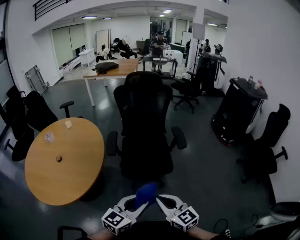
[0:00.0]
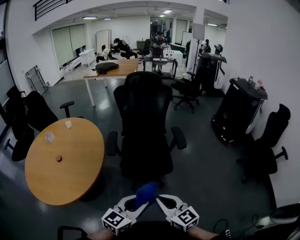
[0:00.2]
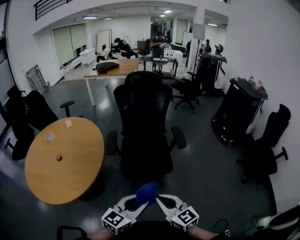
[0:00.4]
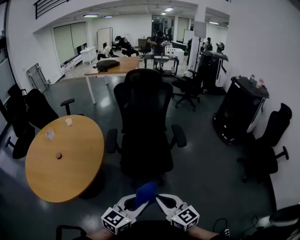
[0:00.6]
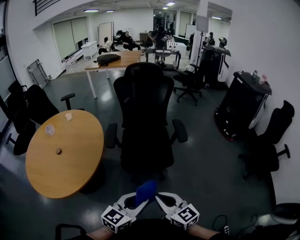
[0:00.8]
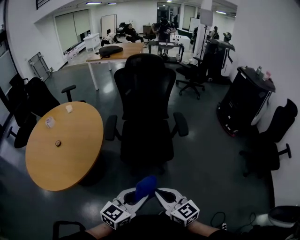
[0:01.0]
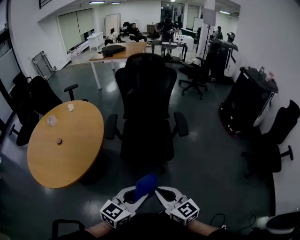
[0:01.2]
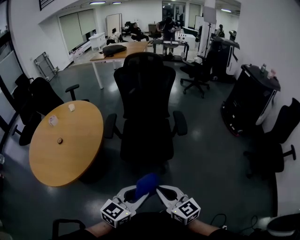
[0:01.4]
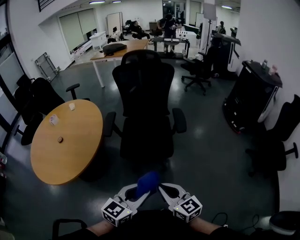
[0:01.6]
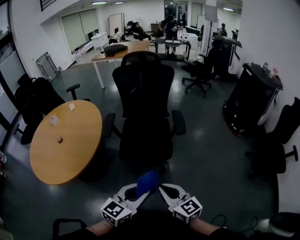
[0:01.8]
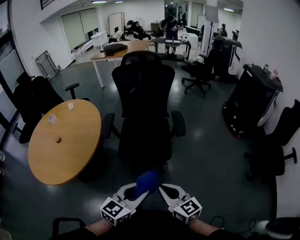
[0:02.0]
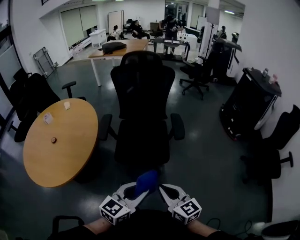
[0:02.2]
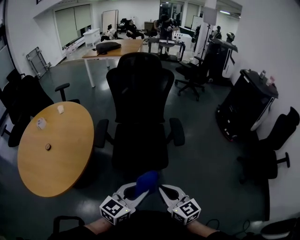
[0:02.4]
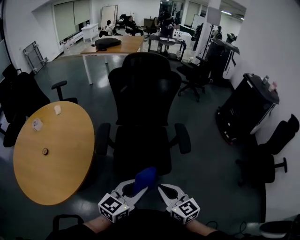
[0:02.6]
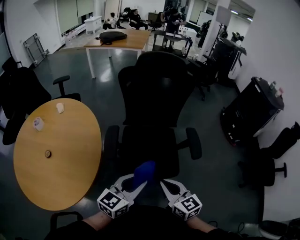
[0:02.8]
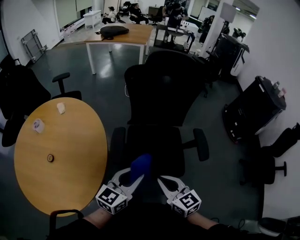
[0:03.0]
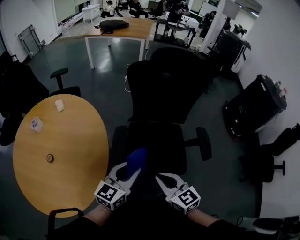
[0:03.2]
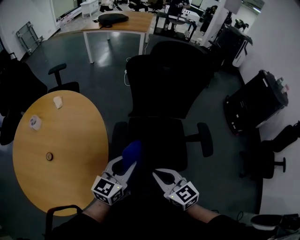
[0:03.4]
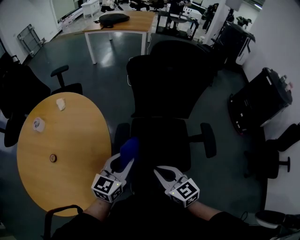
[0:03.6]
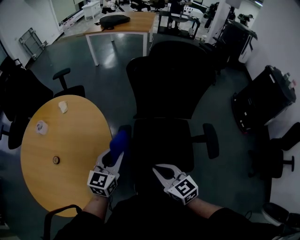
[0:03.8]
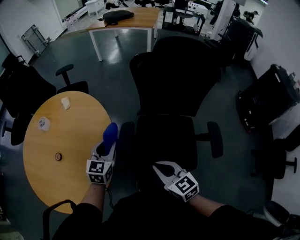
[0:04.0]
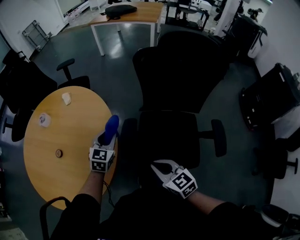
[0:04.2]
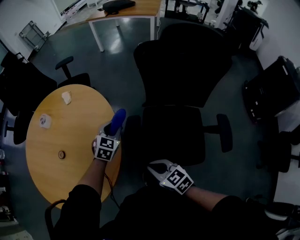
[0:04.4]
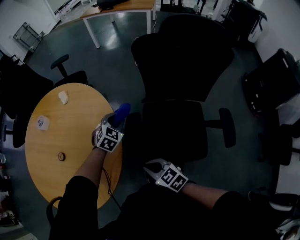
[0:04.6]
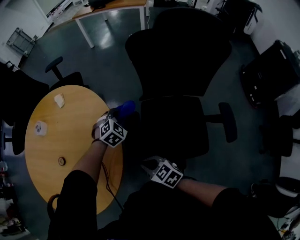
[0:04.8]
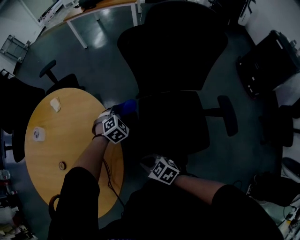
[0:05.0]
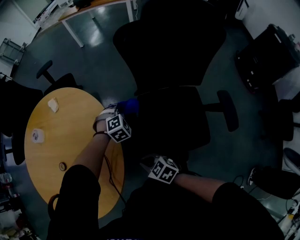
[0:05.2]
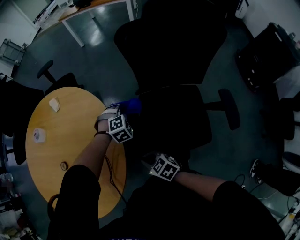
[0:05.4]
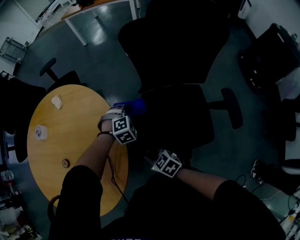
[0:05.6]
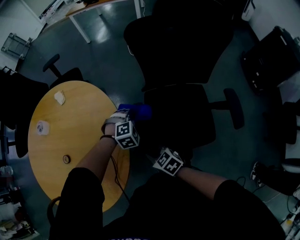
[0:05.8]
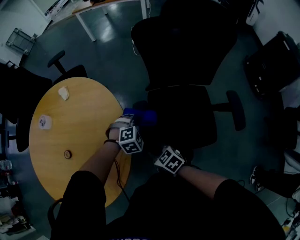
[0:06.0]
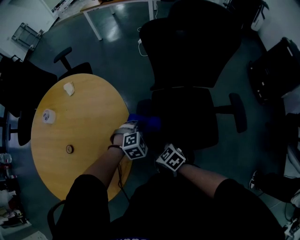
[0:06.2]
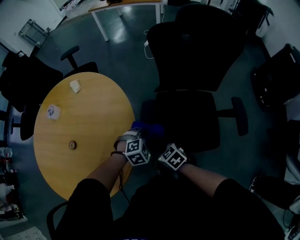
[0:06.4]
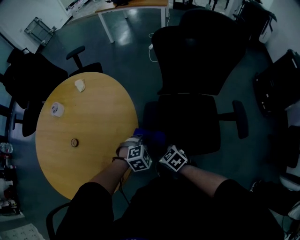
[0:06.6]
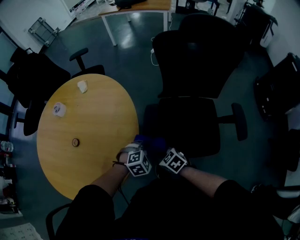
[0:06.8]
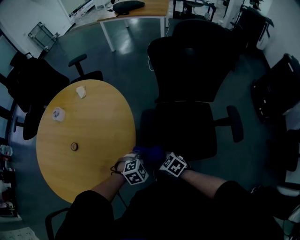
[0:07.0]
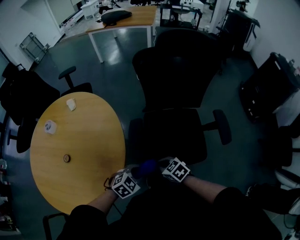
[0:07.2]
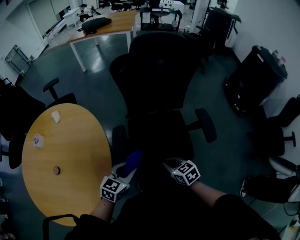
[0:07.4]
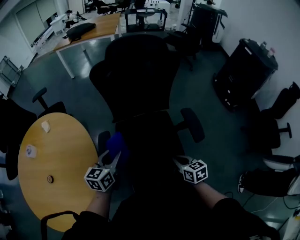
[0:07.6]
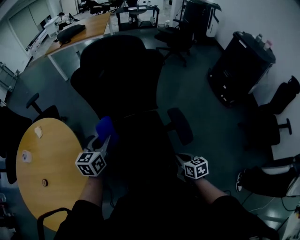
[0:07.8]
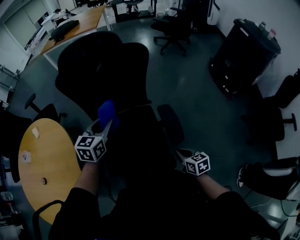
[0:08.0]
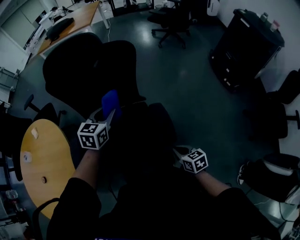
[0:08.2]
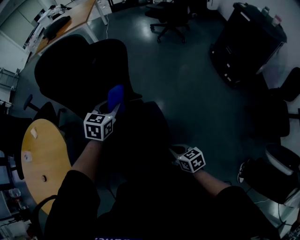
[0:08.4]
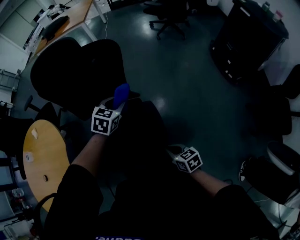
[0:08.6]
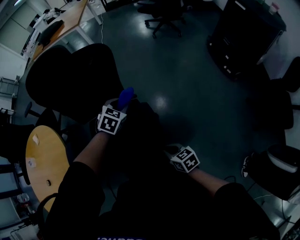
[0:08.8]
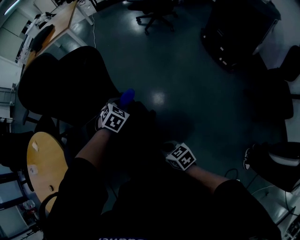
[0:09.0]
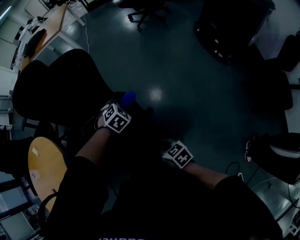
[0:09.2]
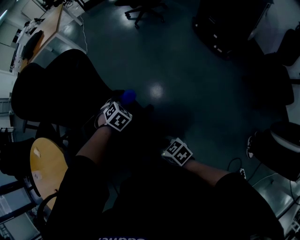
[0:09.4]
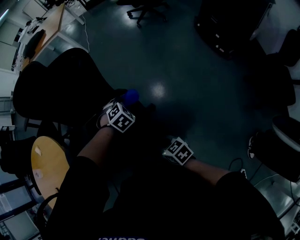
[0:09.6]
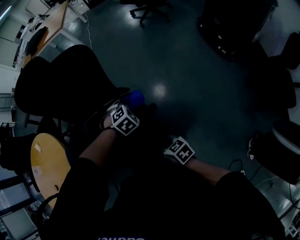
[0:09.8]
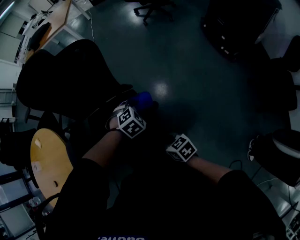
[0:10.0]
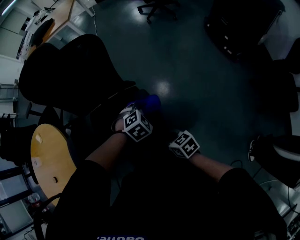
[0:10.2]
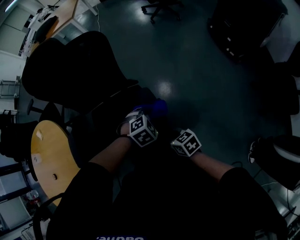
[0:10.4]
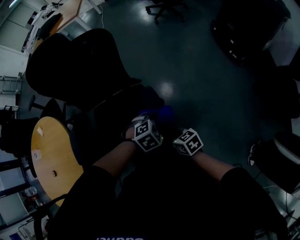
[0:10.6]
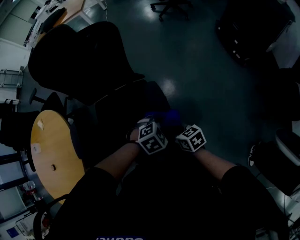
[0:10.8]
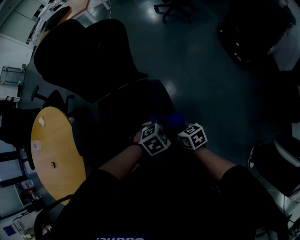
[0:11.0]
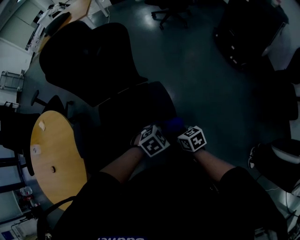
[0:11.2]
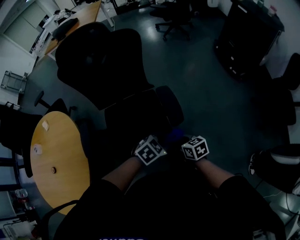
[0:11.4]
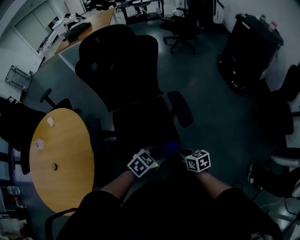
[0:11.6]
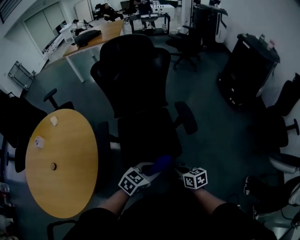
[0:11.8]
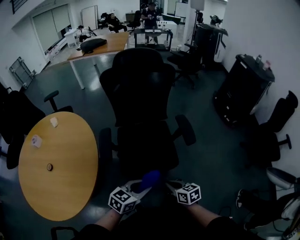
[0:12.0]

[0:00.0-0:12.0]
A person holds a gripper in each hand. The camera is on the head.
0:00.0 to 0:01.6: Both grippers travel together to the right, some 10 cm.
0:01.6 to 0:03.0: The two grippers go some 35 cm forward and to the left.
0:03.0 to 0:04.4: The left gripper moves approximately 35 cm, and rotates approximately 40 degrees. Meanwhile the right gripper moves some 15 cm, and swivels about 30 degrees.
0:04.4 to 0:06.0: The left gripper goes roughly 15 cm downward, backward and to the right, and rotates around the line of its fingers by approximately 50 degrees, clockwise from behind. Meanwhile the right gripper moves downward and to the left, approximately 15 cm.
0:06.0 to 0:07.6: The left gripper heads upward, covering about 15 cm, and rolls counterclockwise, seen from behind, by some 70 degrees; the right gripper ends up about 35 cm from where it was, and rotates roughly 40 degrees.
0:07.6 to 0:09.0: The left gripper shifts about 50 cm to the right and forward, and tips its fingers downward by roughly 40 degrees. Meanwhile the right gripper goes about 20 cm to the right.
0:09.0 to 0:10.4: The left gripper moves backward, about 15 cm, and turns by roughly 20 degrees.
0:10.4 to 0:12.0: The right gripper ends up about 30 cm from where it was. The left gripper changes place by approximately 50 cm, and points its fingers roughly 40 degrees further upward.

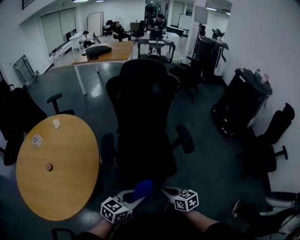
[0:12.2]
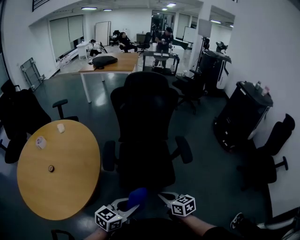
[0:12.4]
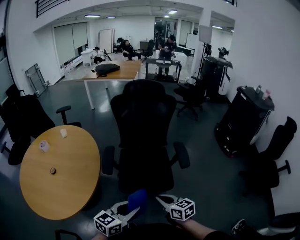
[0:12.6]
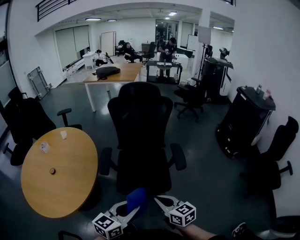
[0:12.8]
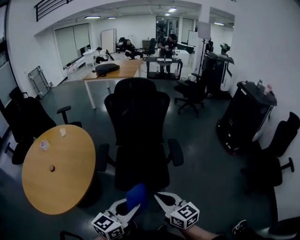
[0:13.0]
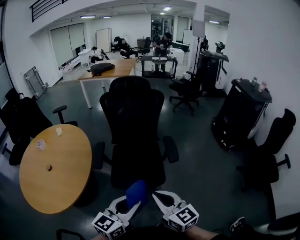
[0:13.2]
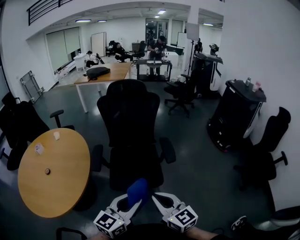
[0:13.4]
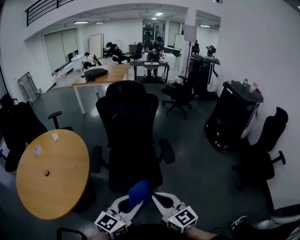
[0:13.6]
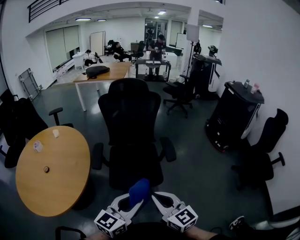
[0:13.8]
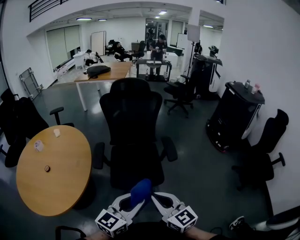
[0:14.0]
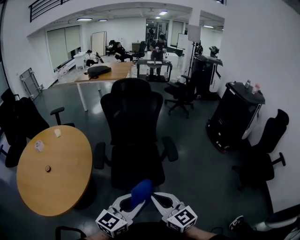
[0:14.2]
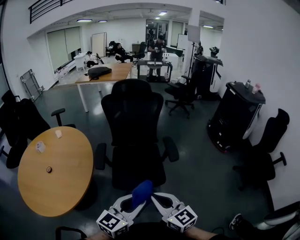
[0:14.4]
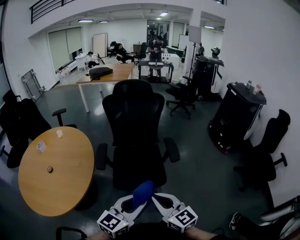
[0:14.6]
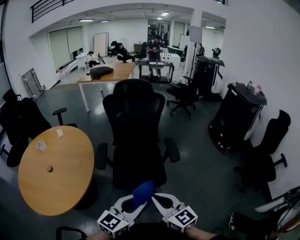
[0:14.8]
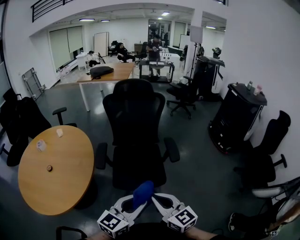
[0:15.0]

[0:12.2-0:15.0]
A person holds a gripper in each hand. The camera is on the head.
0:12.2 to 0:13.6: The left gripper shifts some 20 cm upward and to the right, and turns by some 20 degrees. The right gripper moves upward, approximately 20 cm, and turns by approximately 40 degrees.
0:13.6 to 0:15.0: The grippers make only small movements.

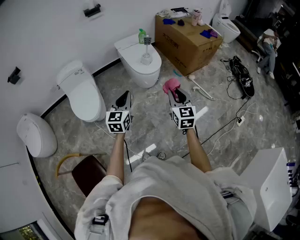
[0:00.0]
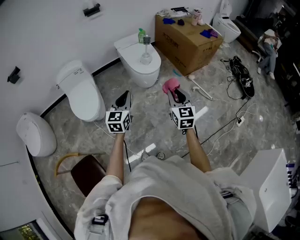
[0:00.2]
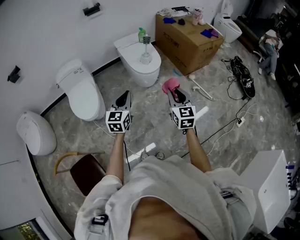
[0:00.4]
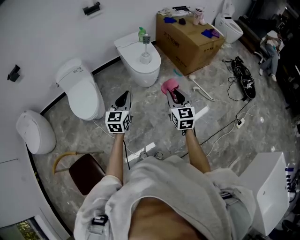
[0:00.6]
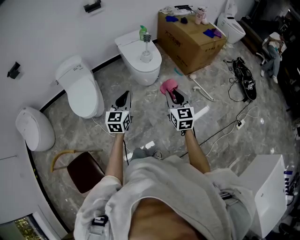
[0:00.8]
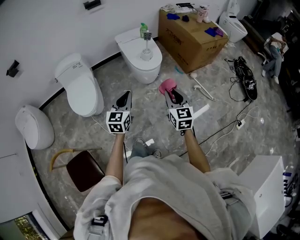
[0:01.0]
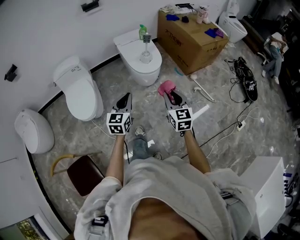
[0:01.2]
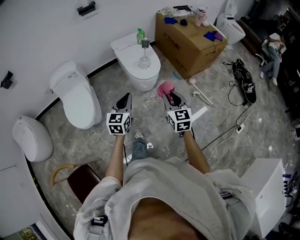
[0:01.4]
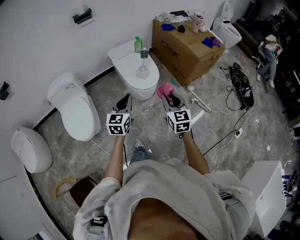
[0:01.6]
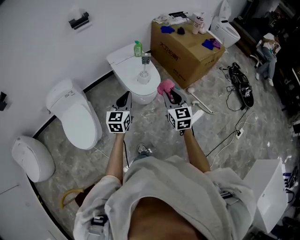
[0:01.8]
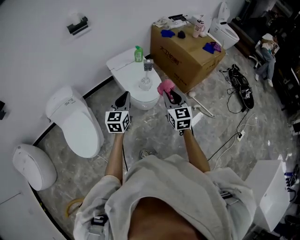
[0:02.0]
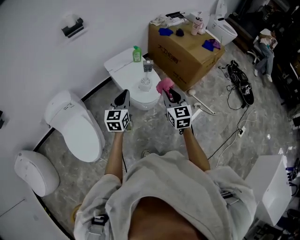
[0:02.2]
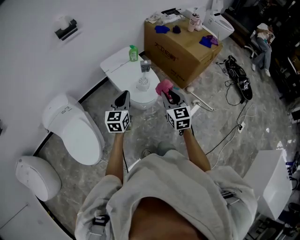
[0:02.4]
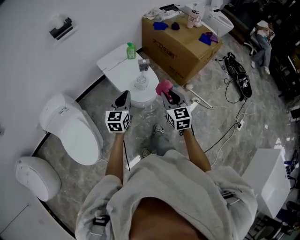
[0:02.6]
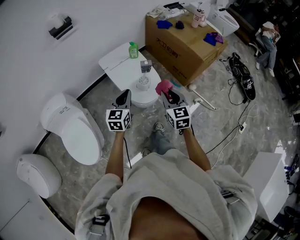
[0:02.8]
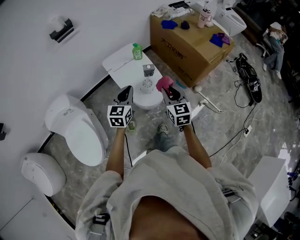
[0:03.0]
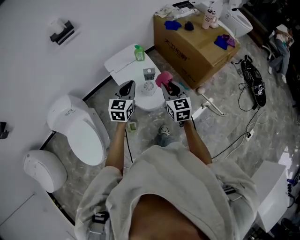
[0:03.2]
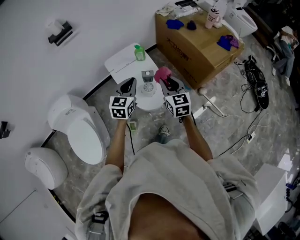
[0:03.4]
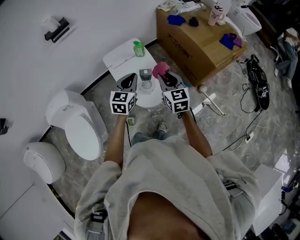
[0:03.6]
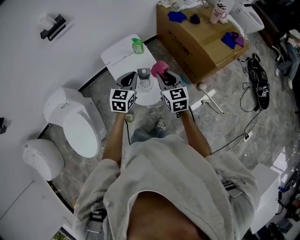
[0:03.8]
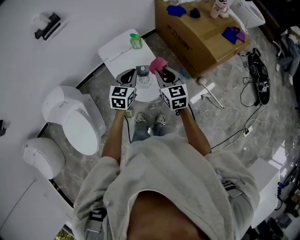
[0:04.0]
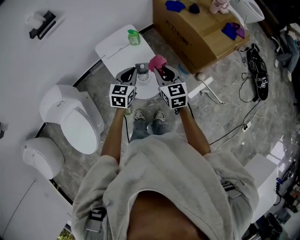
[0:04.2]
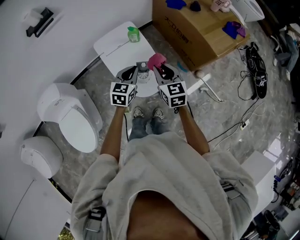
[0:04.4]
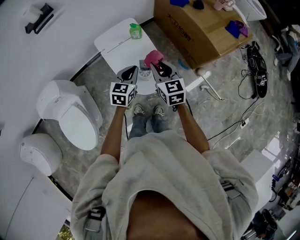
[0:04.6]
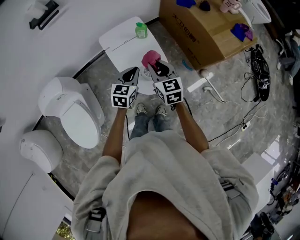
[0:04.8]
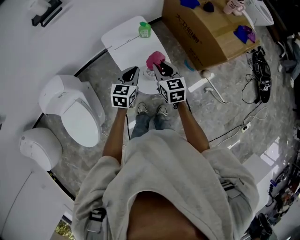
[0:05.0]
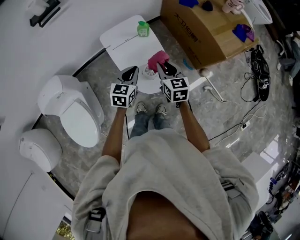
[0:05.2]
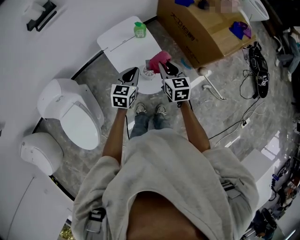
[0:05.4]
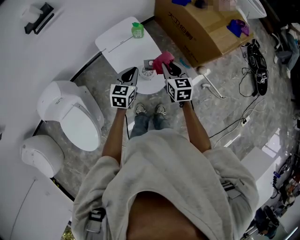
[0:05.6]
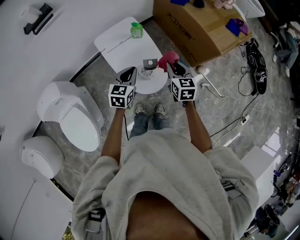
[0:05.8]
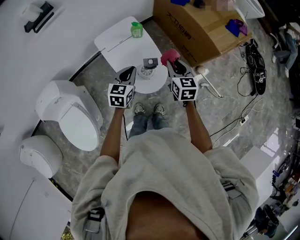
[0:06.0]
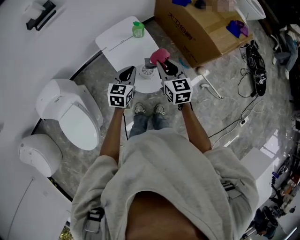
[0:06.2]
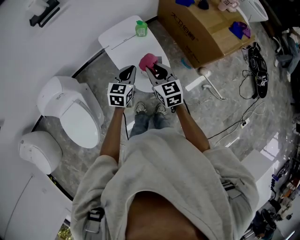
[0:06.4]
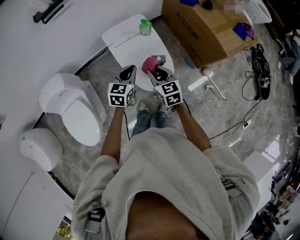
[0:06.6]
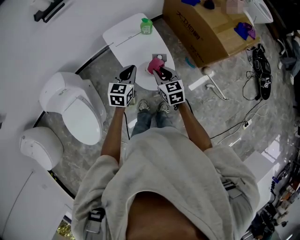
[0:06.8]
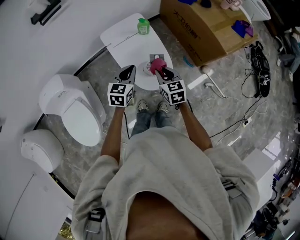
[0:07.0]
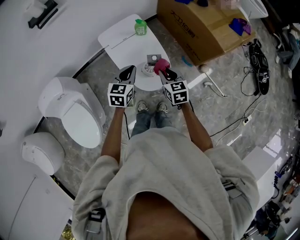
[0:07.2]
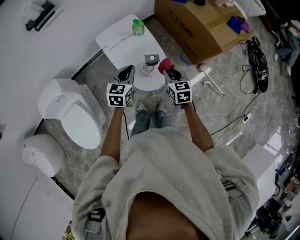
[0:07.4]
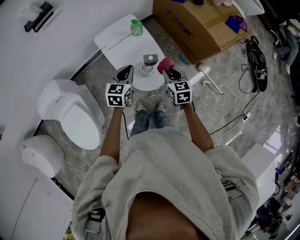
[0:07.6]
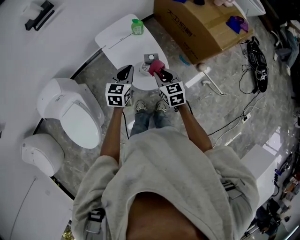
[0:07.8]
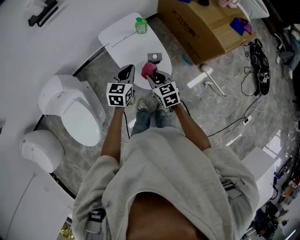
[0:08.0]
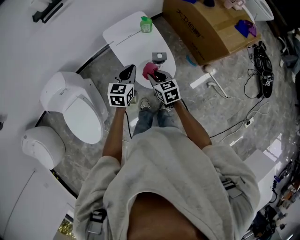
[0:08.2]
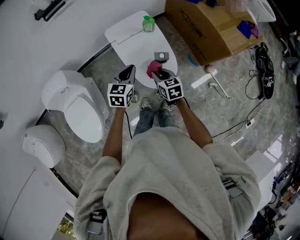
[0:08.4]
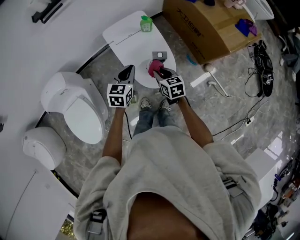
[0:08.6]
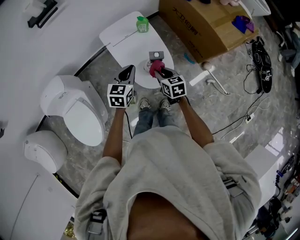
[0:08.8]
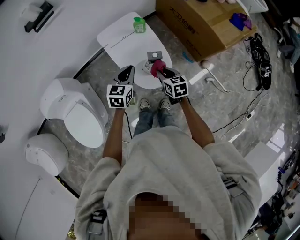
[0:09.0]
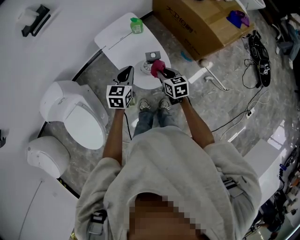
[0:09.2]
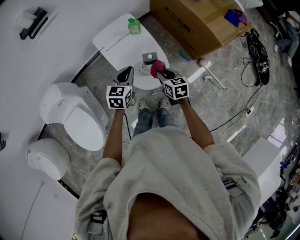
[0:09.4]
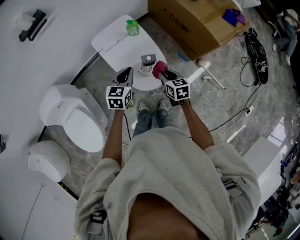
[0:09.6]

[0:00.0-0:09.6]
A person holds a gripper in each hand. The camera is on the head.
0:00.0 to 0:01.6: The two grippers go about 20 cm forward.
0:01.6 to 0:03.2: Both grippers travel together forward, some 30 cm.
0:03.2 to 0:04.8: The right gripper heads forward, to the left and downward, covering about 15 cm. Meanwhile the left gripper shifts roughly 10 cm downward and forward.
0:04.8 to 0:06.4: The right gripper travels to the right and back again, approximately 10 cm each way.
0:06.4 to 0:08.0: The right gripper is displaced downward by about 10 cm, and moves roughly 10 cm to the right and comes back.
0:08.0 to 0:09.6: The right gripper travels to the right by some 10 cm.
